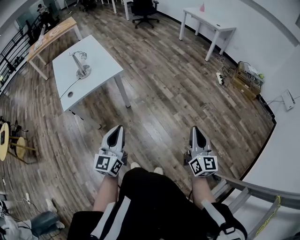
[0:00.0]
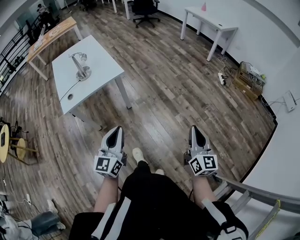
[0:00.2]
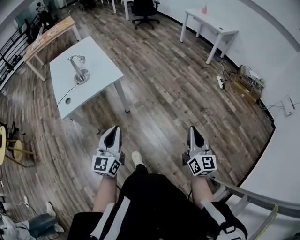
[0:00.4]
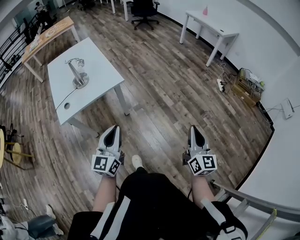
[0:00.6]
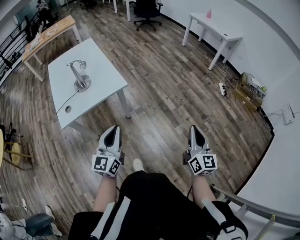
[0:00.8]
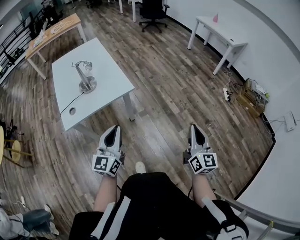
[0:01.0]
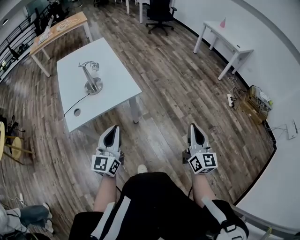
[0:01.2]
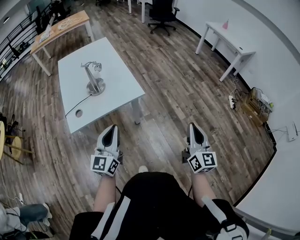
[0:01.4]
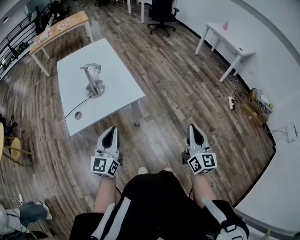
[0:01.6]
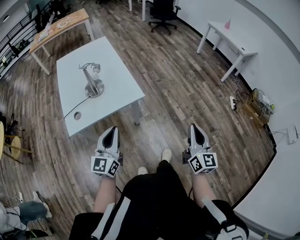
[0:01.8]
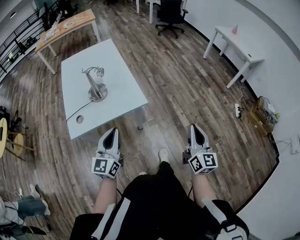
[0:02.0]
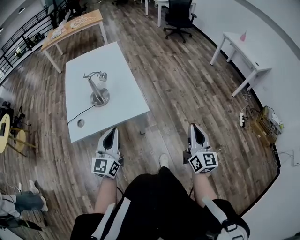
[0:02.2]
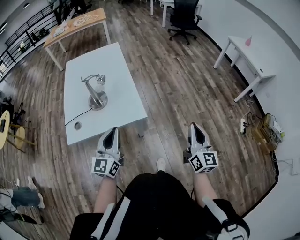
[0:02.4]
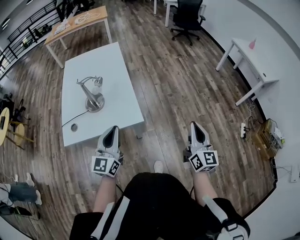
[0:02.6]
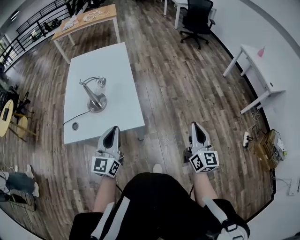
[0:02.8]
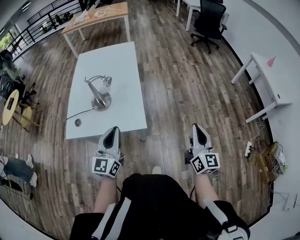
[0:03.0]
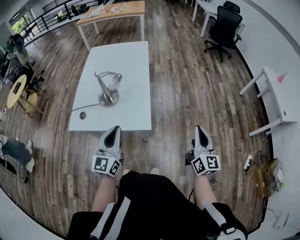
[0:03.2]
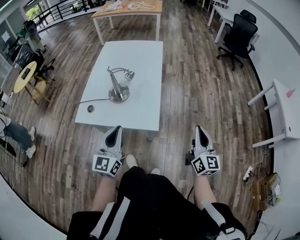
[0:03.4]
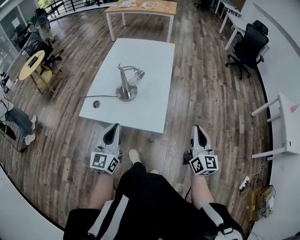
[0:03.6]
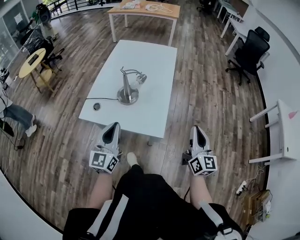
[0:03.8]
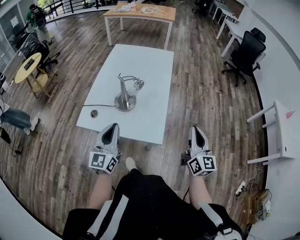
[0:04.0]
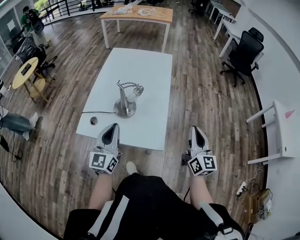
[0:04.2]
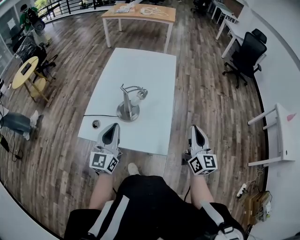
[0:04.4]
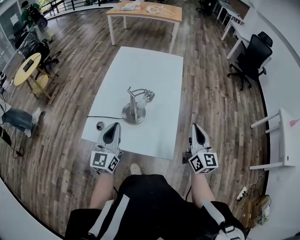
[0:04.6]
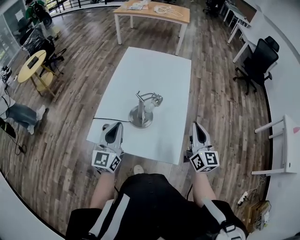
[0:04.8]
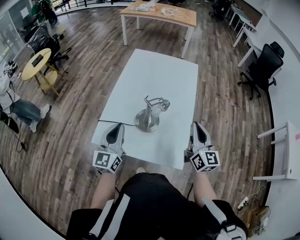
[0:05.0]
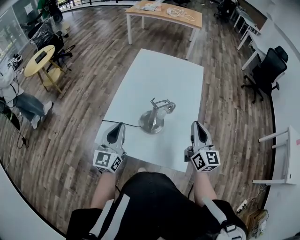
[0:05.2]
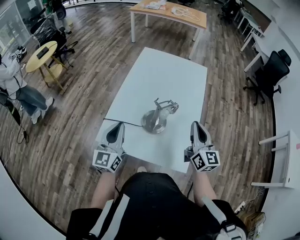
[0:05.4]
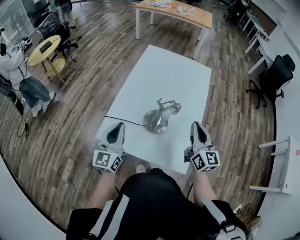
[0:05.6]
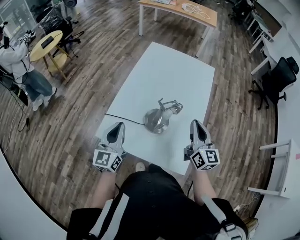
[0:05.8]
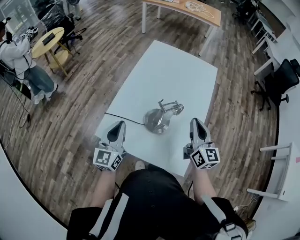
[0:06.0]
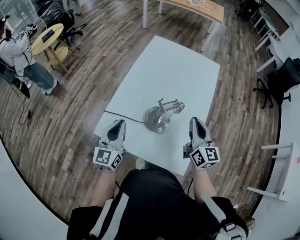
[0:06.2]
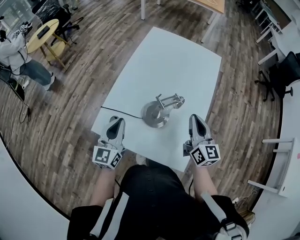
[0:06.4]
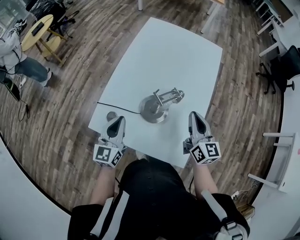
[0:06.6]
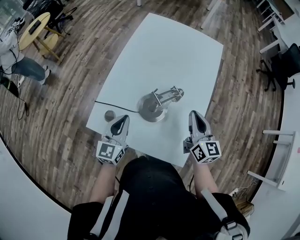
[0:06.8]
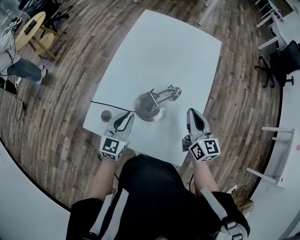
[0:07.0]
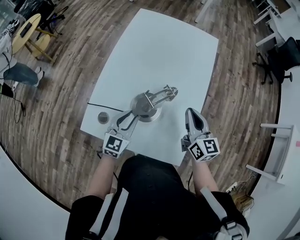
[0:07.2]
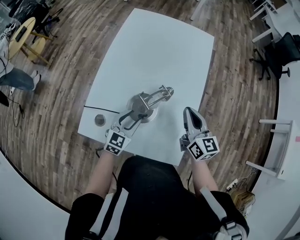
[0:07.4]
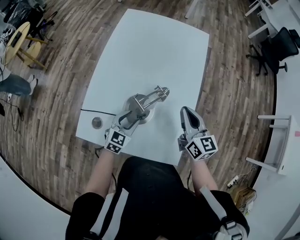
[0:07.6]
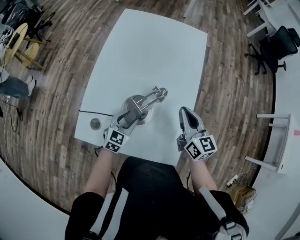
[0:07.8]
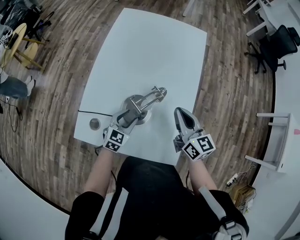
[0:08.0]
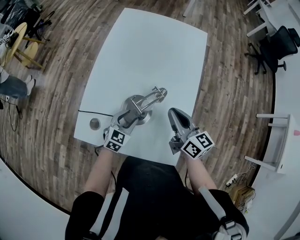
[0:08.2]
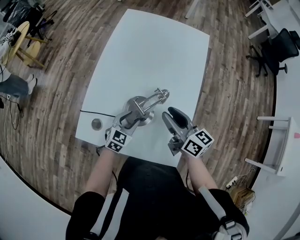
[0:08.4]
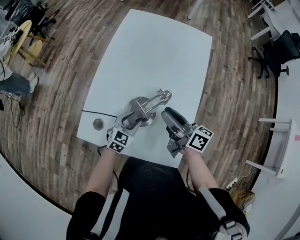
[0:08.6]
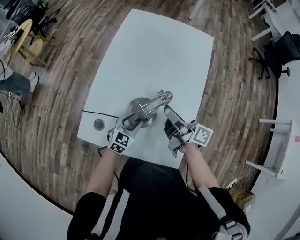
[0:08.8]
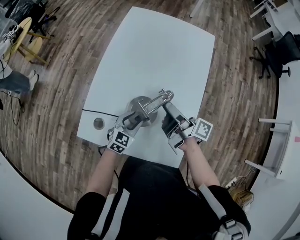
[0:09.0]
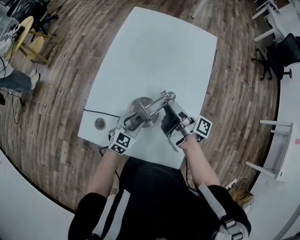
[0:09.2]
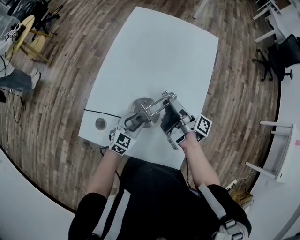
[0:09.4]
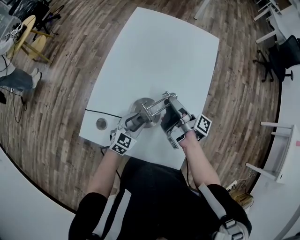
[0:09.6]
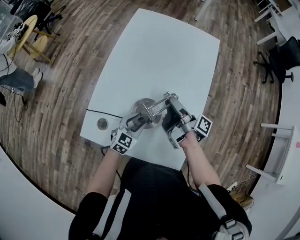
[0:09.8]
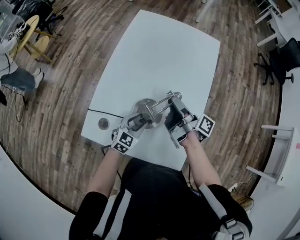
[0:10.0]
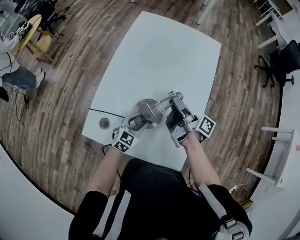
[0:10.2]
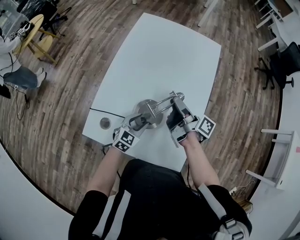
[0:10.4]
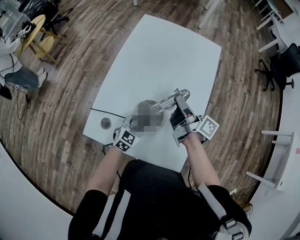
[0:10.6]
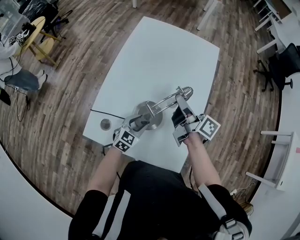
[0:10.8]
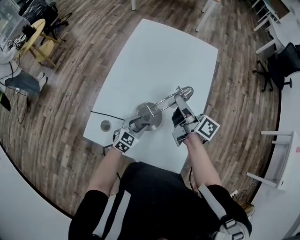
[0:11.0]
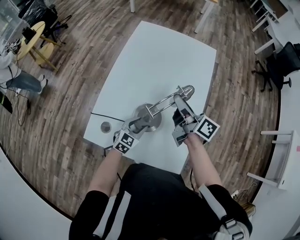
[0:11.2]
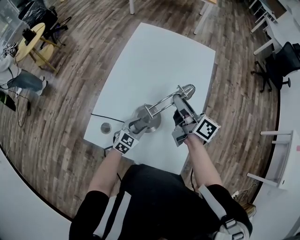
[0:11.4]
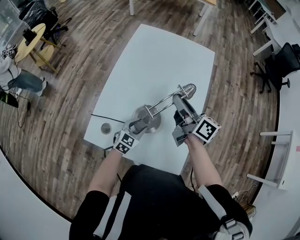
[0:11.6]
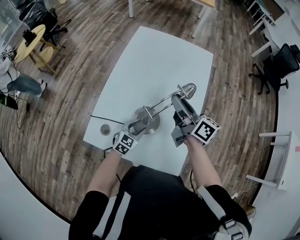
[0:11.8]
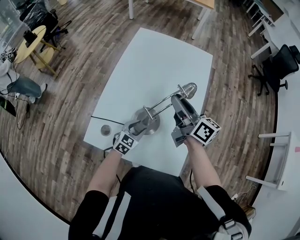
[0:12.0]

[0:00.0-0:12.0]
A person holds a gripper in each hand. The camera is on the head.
0.0 to 1.6 s: Both grippers travel together forward and to the left, about 30 cm.
1.6 to 3.0 s: The right gripper moves forward, about 30 cm, and turns by about 20 degrees; the left gripper moves forward, roughly 20 cm, and changes its angle by roughly 20 degrees.
3.0 to 4.4 s: The right gripper is displaced forward and to the left by some 25 cm; the left gripper shifts approximately 20 cm to the left and forward.
4.4 to 6.0 s: The right gripper moves forward and to the left, roughly 25 cm, while the left gripper shifts about 15 cm to the left and forward.
6.0 to 7.6 s: The right gripper moves downward, roughly 10 cm. Meanwhile the left gripper shifts approximately 25 cm downward and to the right, points its fingers about 30 degrees further downward, and opens its fingers.
7.6 to 9.0 s: The right gripper is displaced to the left by about 10 cm, rolls clockwise, seen from behind, by approximately 60 degrees, and opens its fingers.
9.0 to 10.4 s: The grippers move only a little.
10.4 to 12.0 s: The right gripper travels upward by about 10 cm, and rolls counterclockwise, seen from behind, by some 40 degrees.

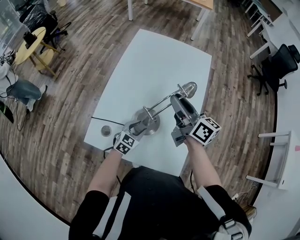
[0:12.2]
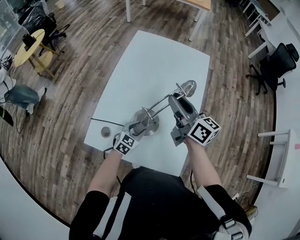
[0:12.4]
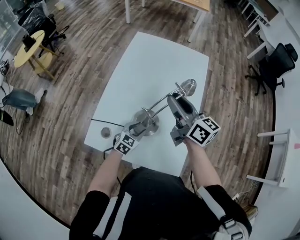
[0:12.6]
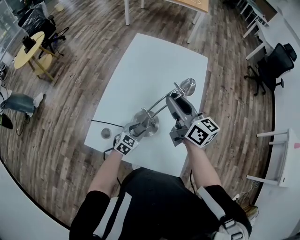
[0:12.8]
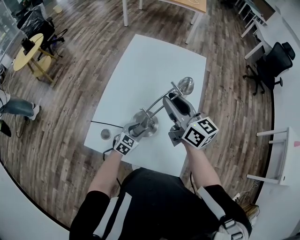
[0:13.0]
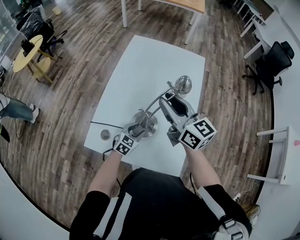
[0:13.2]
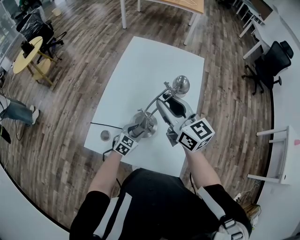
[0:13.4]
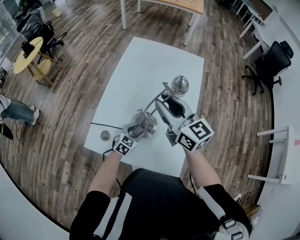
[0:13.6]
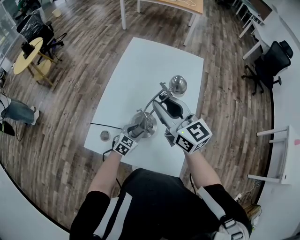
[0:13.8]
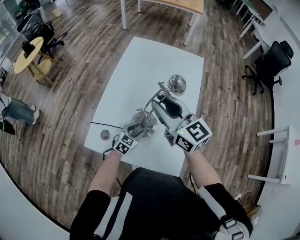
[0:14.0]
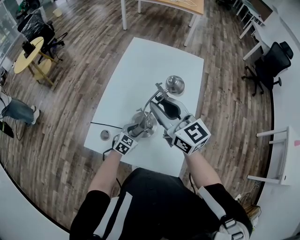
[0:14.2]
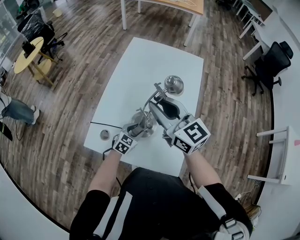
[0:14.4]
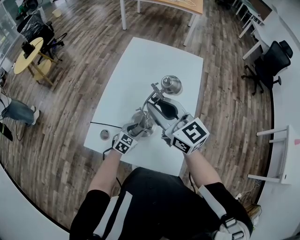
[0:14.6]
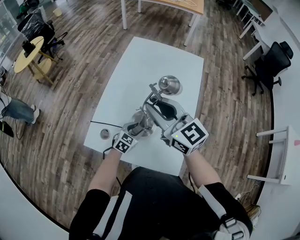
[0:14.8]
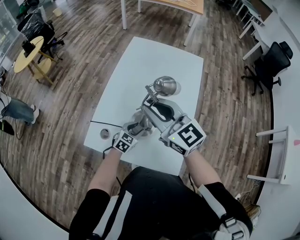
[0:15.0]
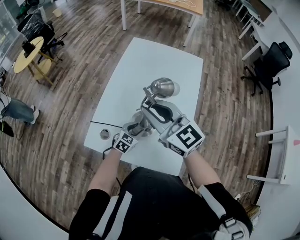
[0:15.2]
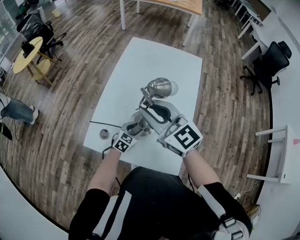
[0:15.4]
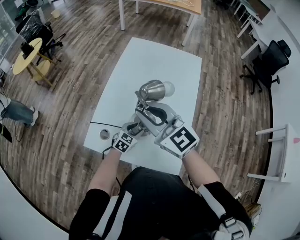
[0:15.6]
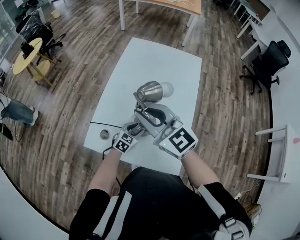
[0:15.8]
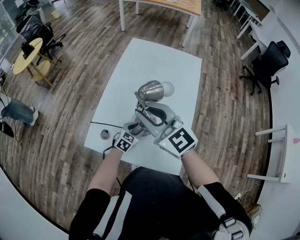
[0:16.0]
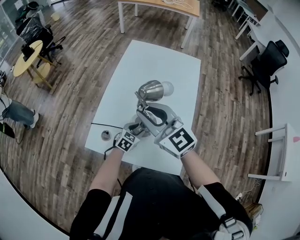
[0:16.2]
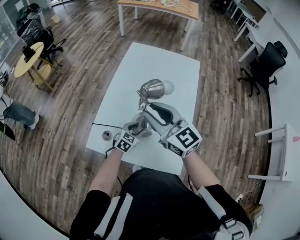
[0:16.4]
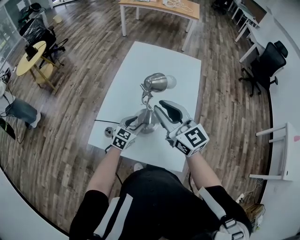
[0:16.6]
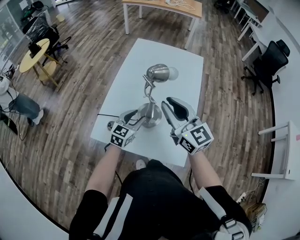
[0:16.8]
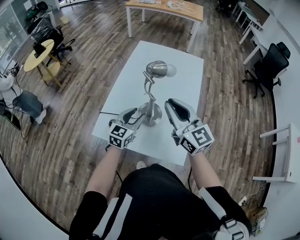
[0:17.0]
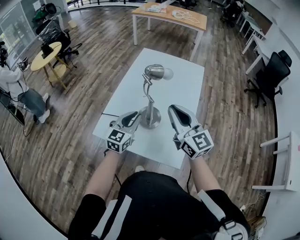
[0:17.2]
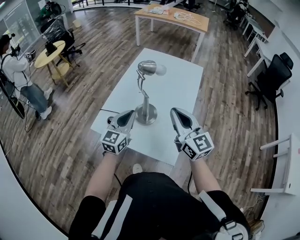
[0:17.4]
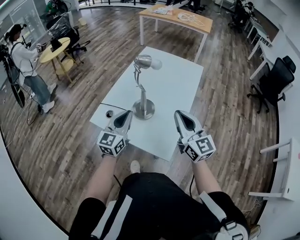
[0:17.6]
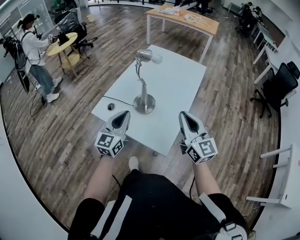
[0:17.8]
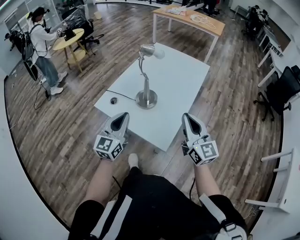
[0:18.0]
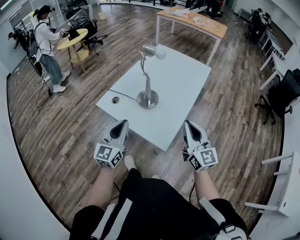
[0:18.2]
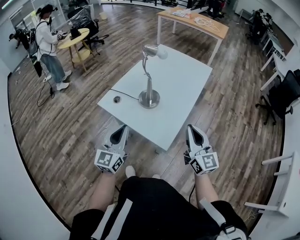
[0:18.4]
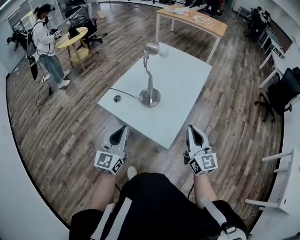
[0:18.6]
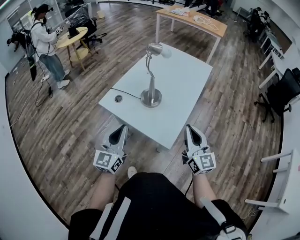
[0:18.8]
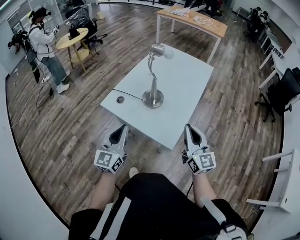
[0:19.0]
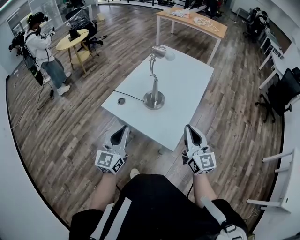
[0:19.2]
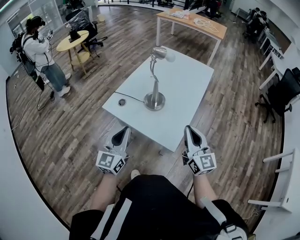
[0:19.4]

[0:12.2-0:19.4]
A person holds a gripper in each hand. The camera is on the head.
12.2 to 13.6 s: The right gripper goes about 5 cm upward, and swivels roughly 30 degrees.
13.6 to 15.0 s: The right gripper heads to the left, covering some 5 cm.
15.0 to 16.6 s: The left gripper moves upward, some 5 cm.
16.6 to 18.0 s: The right gripper travels backward and to the right by approximately 25 cm, and closes. Meanwhile the left gripper travels upward and backward by approximately 30 cm, turns by roughly 40 degrees, and closes its fingers.
18.0 to 19.4 s: The right gripper moves some 5 cm, while the left gripper travels backward by some 5 cm.

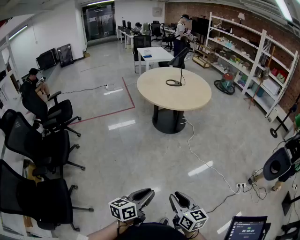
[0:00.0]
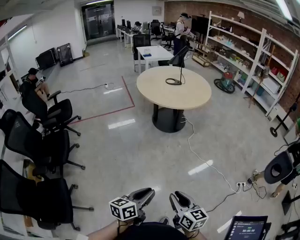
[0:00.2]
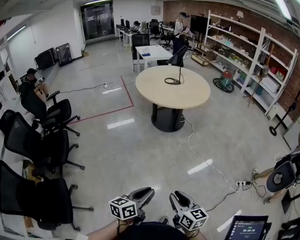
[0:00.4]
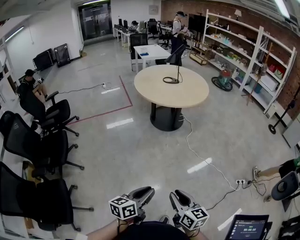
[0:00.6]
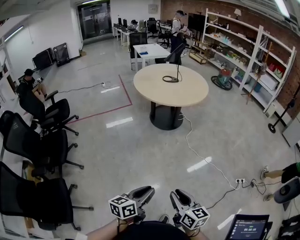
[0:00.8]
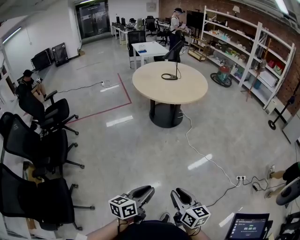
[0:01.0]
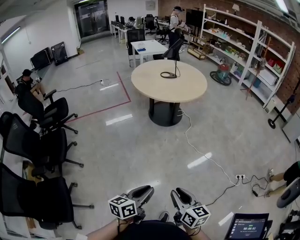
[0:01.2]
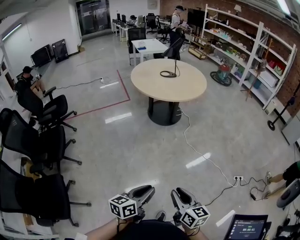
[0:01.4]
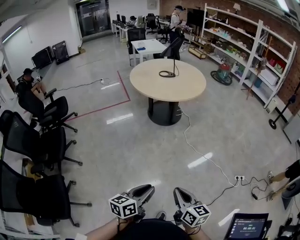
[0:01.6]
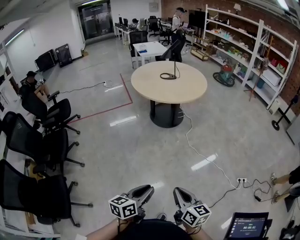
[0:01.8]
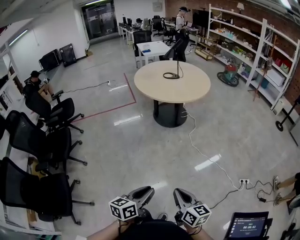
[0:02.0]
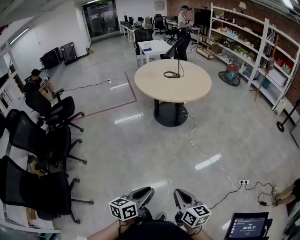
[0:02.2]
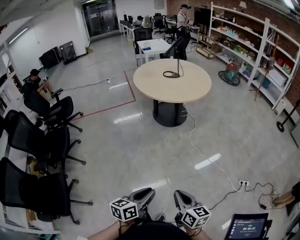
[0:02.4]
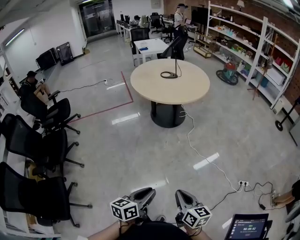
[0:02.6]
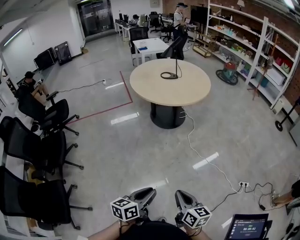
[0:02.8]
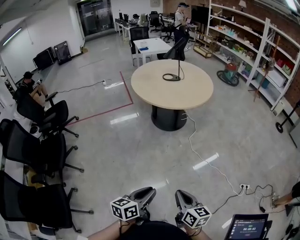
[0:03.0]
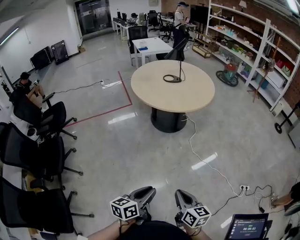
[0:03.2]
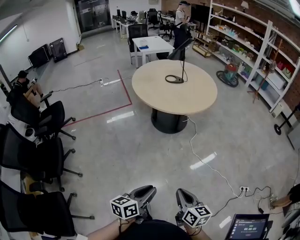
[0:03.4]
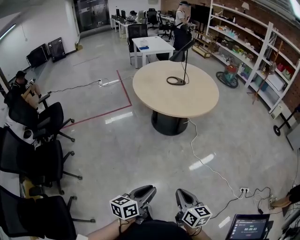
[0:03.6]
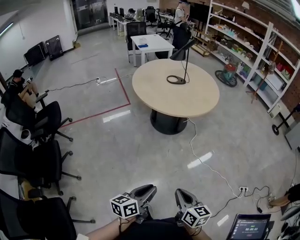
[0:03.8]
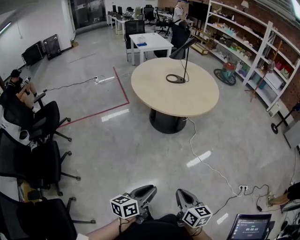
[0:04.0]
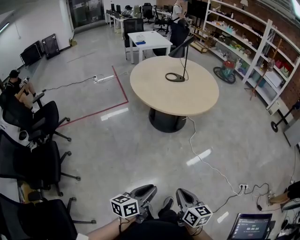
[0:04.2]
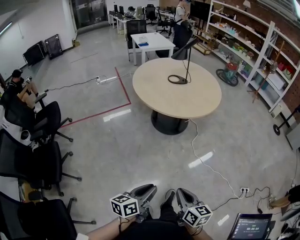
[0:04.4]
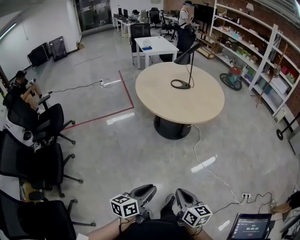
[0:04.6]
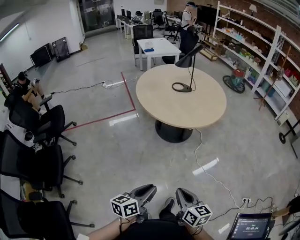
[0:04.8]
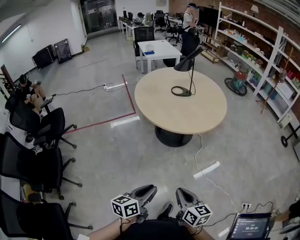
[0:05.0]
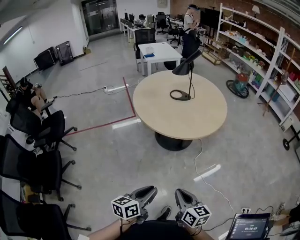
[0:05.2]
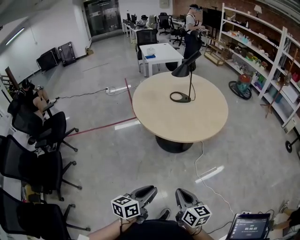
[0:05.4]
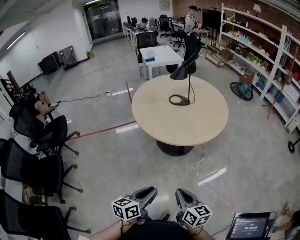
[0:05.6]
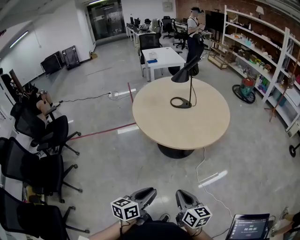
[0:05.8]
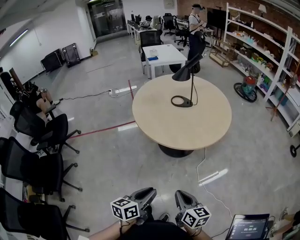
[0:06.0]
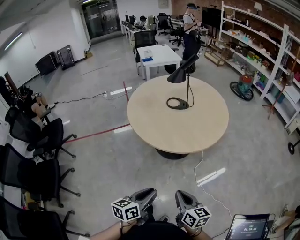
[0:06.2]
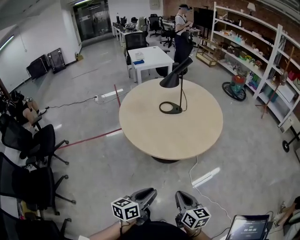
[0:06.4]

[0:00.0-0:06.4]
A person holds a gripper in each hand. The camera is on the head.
0.0 to 1.6 s: Both grippers move to the right, about 5 cm.
1.6 to 3.2 s: The grippers both shift forward by some 15 cm.
3.2 to 4.8 s: Both grippers move forward and to the left, roughly 15 cm.
4.8 to 6.4 s: The two grippers go about 25 cm forward and to the right.
